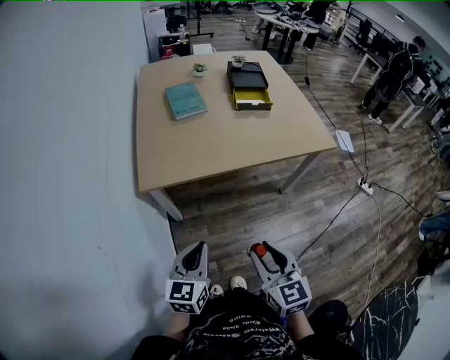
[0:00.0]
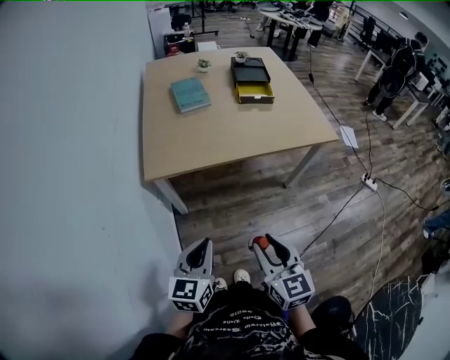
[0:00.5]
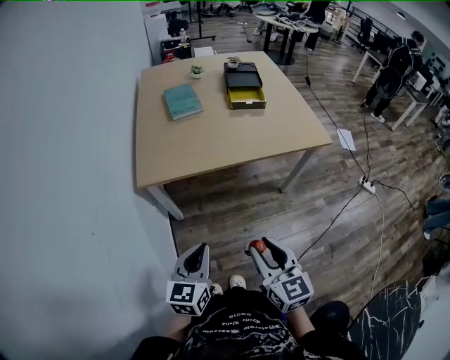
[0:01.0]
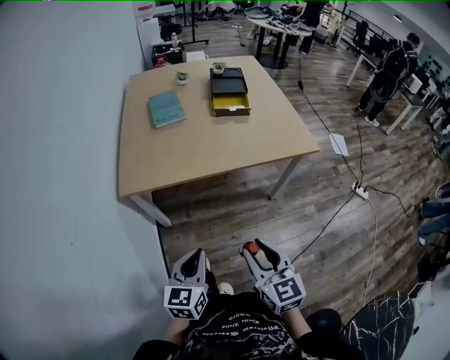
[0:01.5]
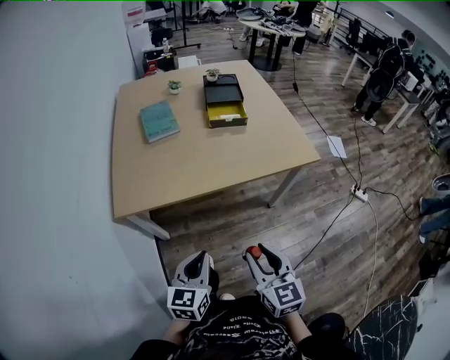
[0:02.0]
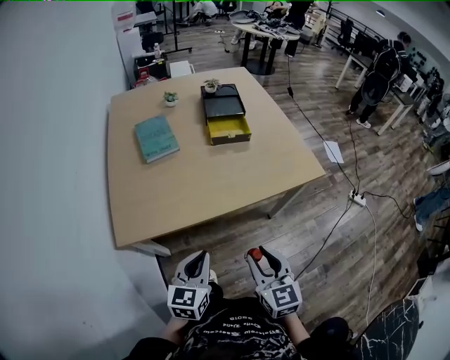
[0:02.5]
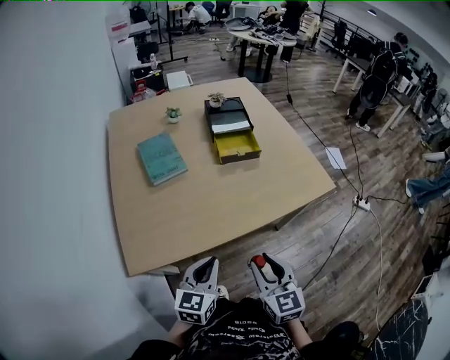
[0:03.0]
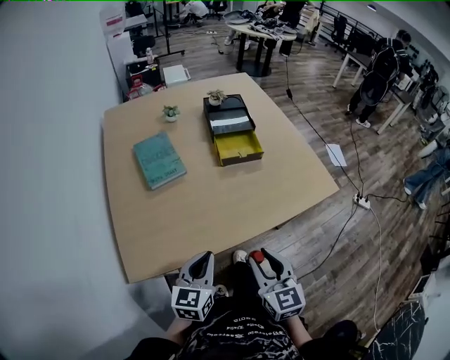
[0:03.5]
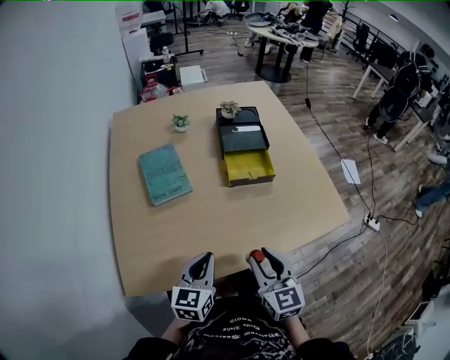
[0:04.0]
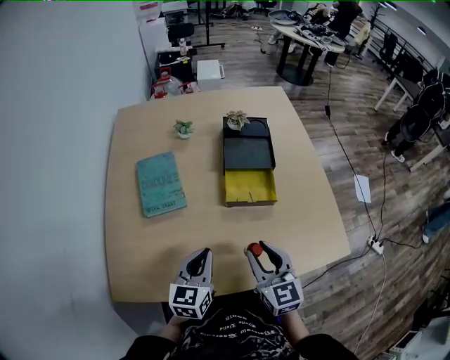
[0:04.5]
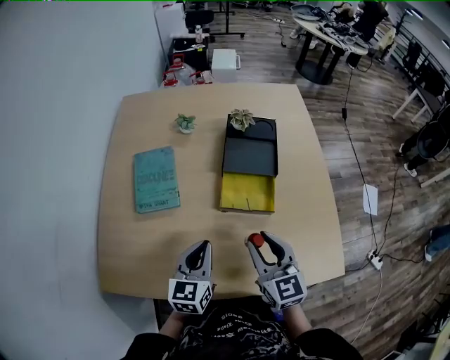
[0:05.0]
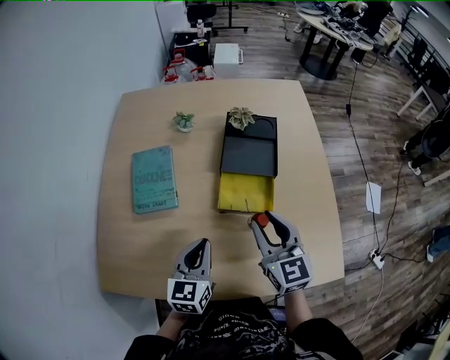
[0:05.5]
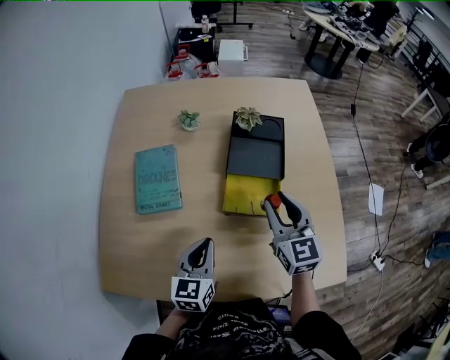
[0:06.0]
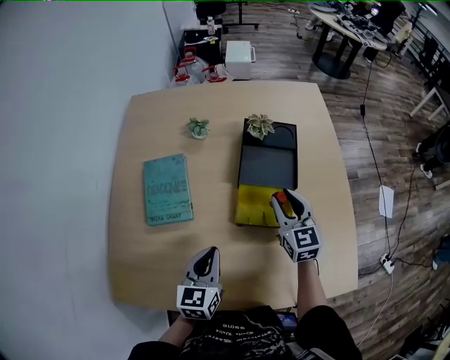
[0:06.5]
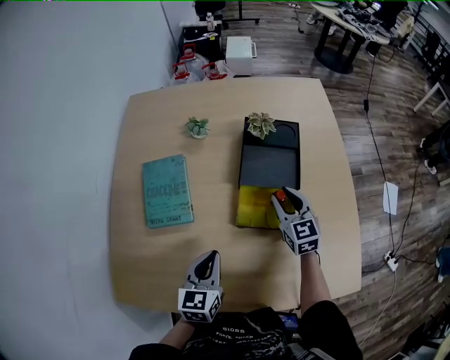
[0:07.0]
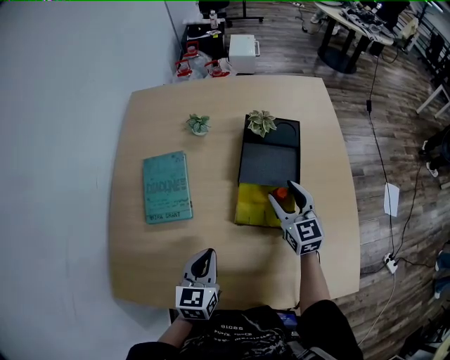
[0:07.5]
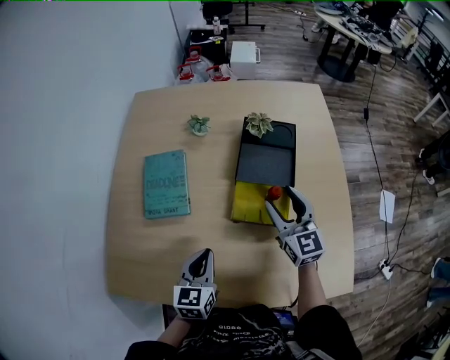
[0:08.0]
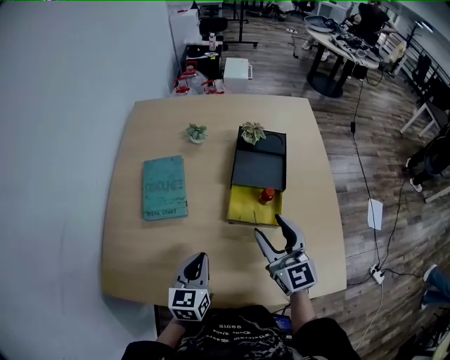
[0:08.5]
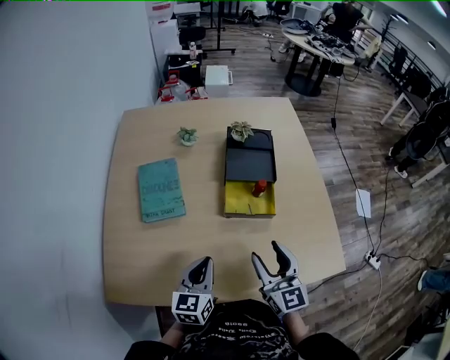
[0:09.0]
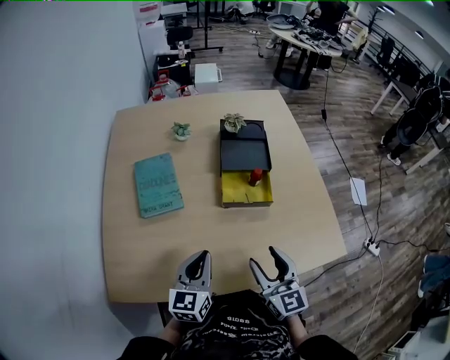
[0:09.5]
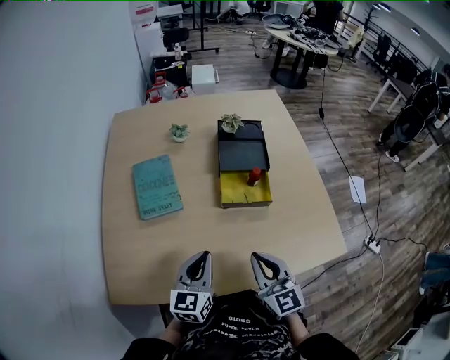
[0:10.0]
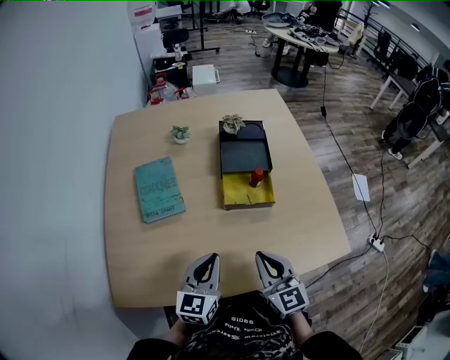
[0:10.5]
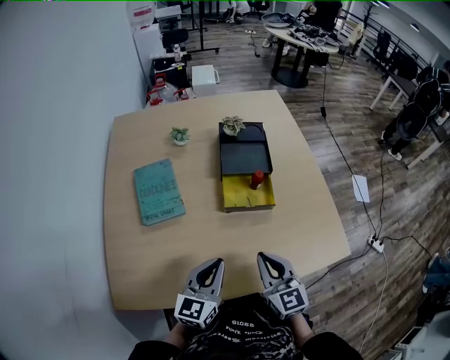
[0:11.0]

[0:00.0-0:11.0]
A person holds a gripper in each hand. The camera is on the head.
0:00.0 to 0:02.0: The two grippers go some 15 cm to the right and forward.
0:02.0 to 0:03.5: Both grippers travel together forward and to the left, some 25 cm.
0:03.5 to 0:05.5: The right gripper moves forward, roughly 40 cm, and turns by approximately 20 degrees. Meanwhile the left gripper shifts some 30 cm forward and to the right, and turns by some 20 degrees.
0:05.5 to 0:07.5: The left gripper ends up approximately 5 cm from where it was, while the right gripper heads forward and downward, covering some 20 cm, and opens.
0:07.5 to 0:09.0: The left gripper travels backward by roughly 10 cm. The right gripper shifts roughly 25 cm backward.
0:09.0 to 0:11.0: The right gripper moves some 5 cm, and closes up.

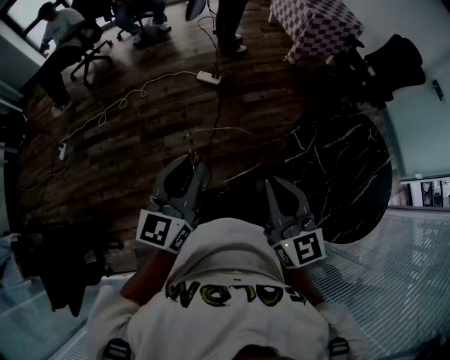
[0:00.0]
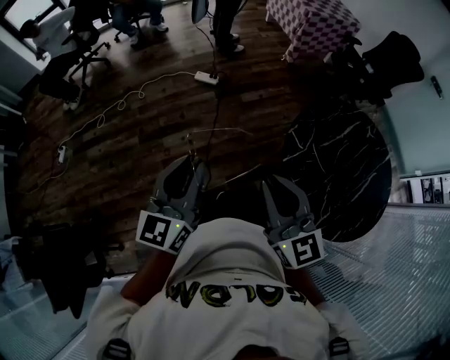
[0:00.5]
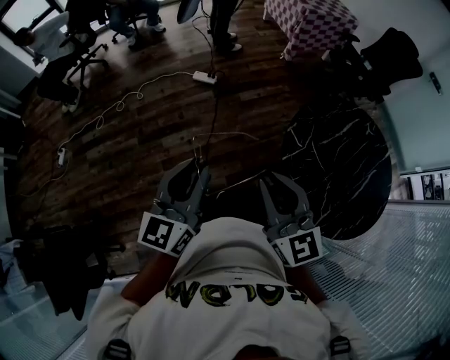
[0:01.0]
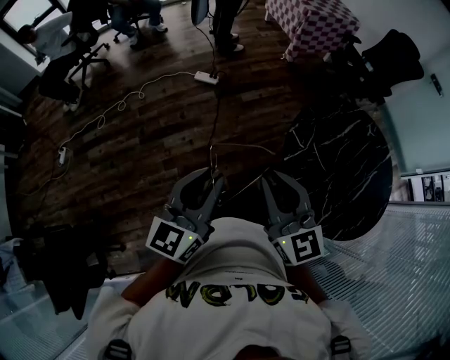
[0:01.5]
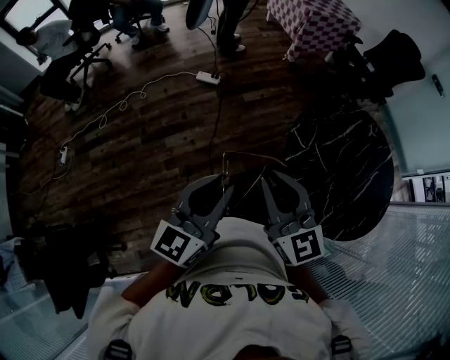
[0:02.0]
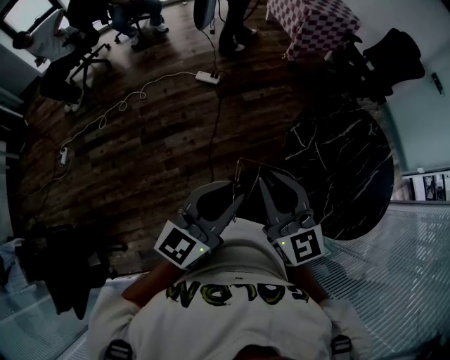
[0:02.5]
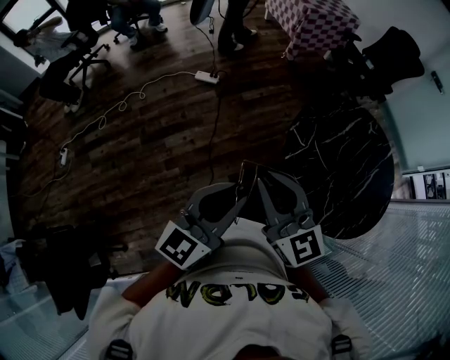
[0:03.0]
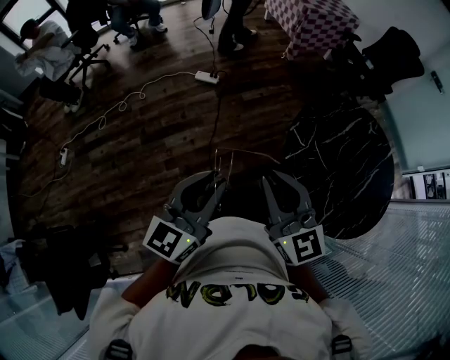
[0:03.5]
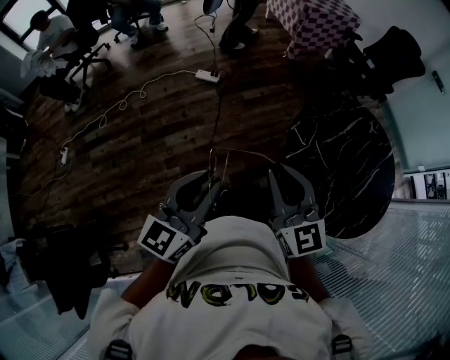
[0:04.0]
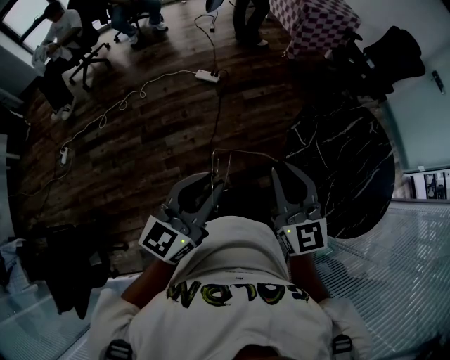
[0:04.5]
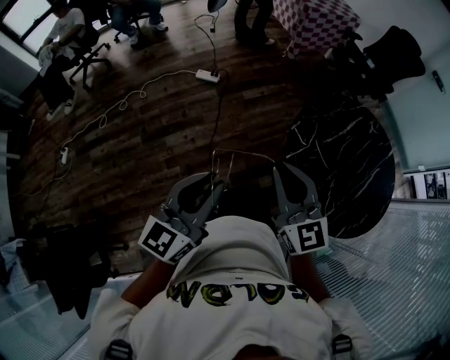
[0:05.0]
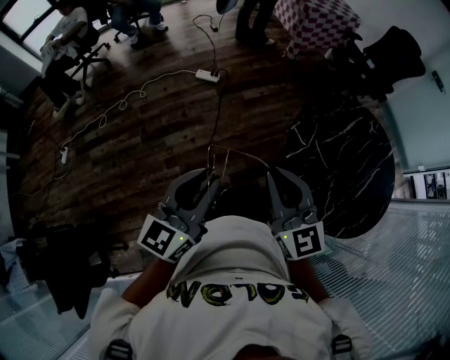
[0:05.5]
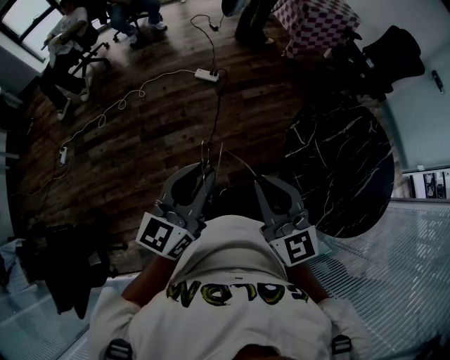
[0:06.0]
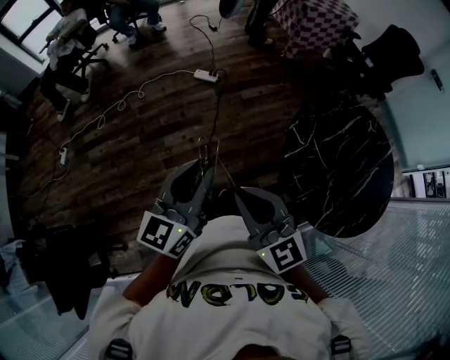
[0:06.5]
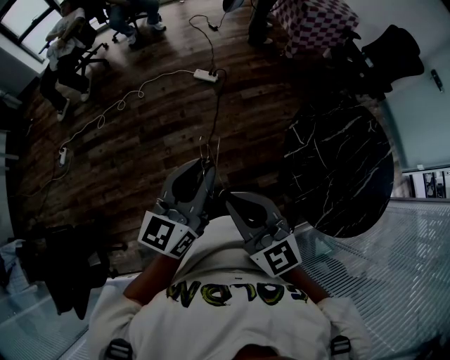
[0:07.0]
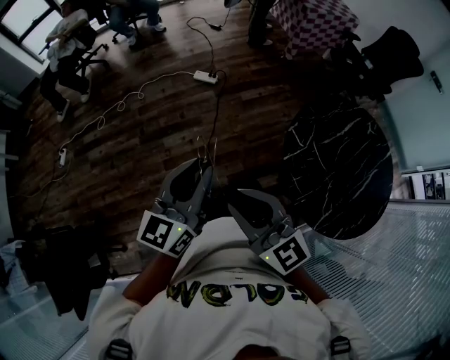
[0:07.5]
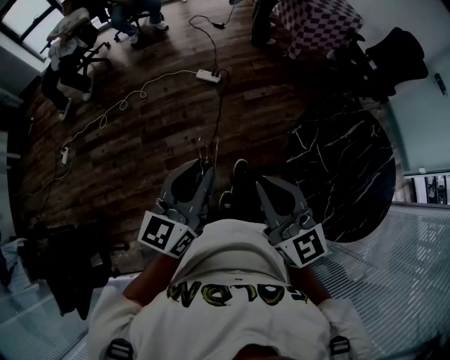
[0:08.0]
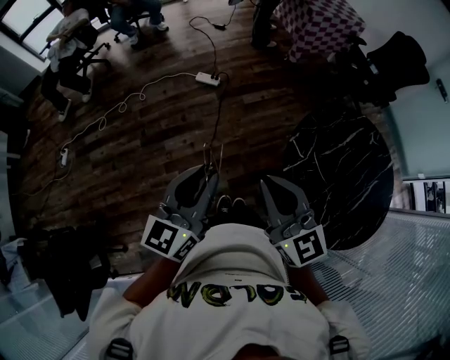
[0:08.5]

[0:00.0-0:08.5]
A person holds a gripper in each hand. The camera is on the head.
0:00.0 to 0:02.0: The left gripper travels to the right by about 5 cm.
0:02.0 to 0:04.0: There are only small adjustments of the grippers.
0:04.0 to 0:06.5: The right gripper moves to the left and backward, about 10 cm.
0:06.5 to 0:08.5: The left gripper moves forward, approximately 5 cm, while the right gripper shifts about 10 cm forward and to the right.

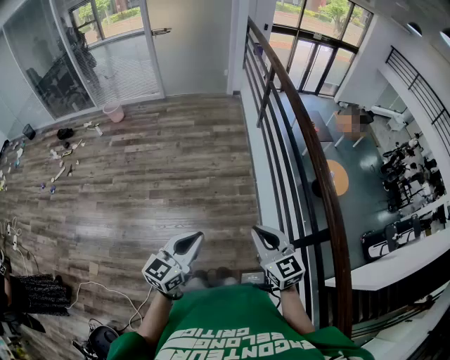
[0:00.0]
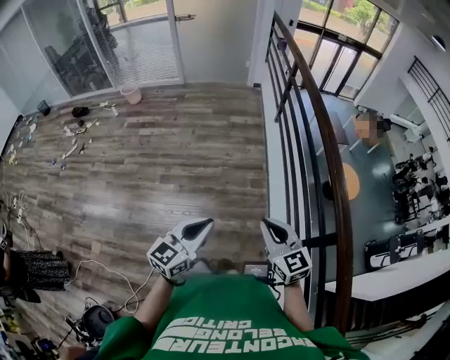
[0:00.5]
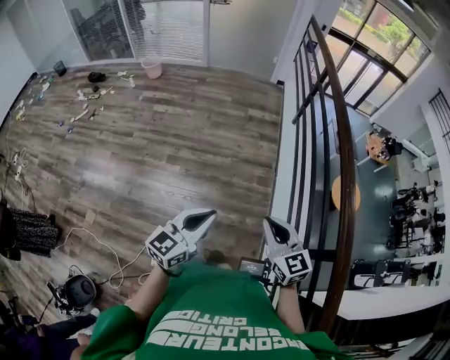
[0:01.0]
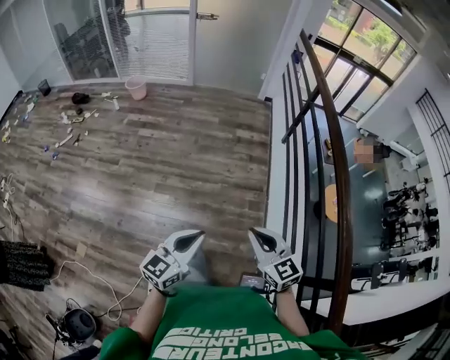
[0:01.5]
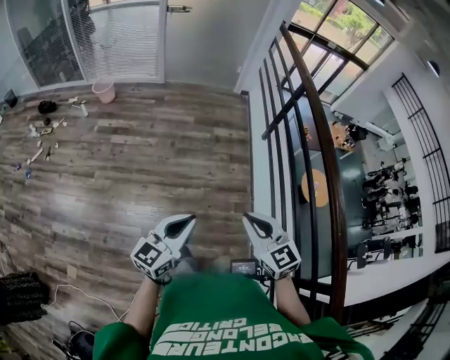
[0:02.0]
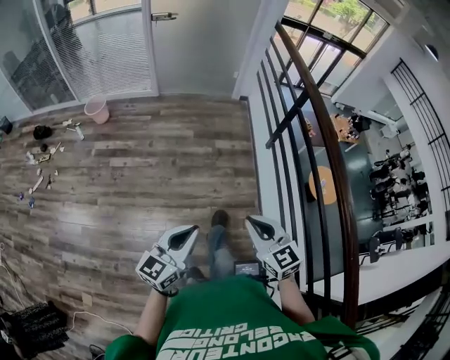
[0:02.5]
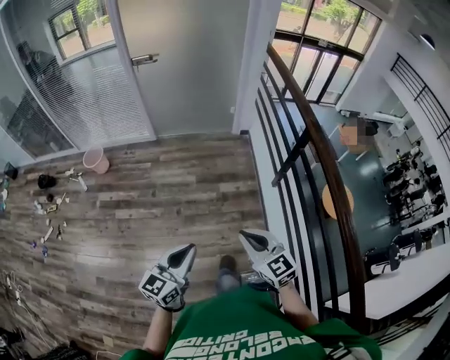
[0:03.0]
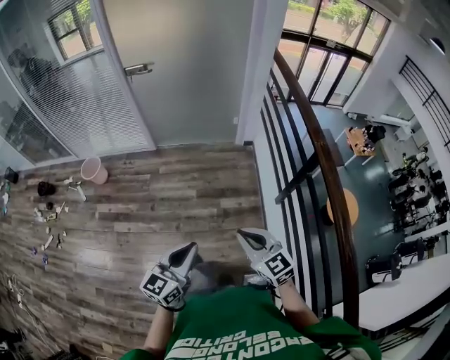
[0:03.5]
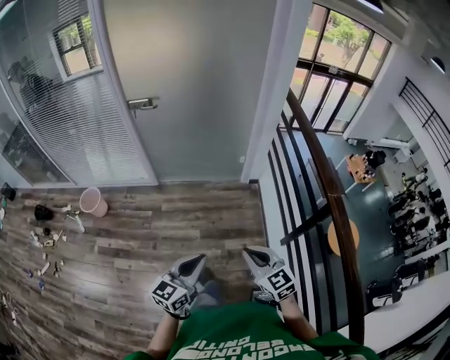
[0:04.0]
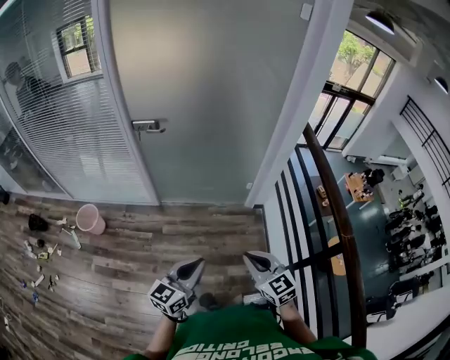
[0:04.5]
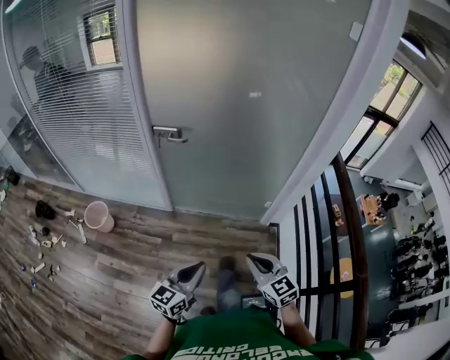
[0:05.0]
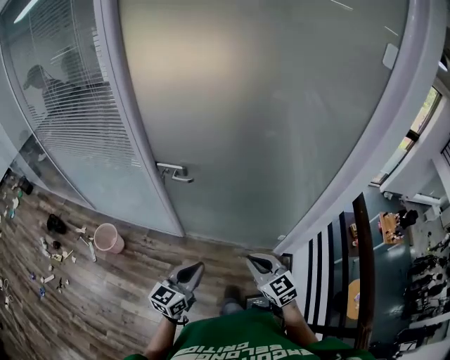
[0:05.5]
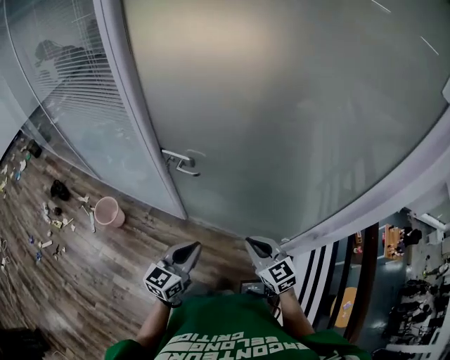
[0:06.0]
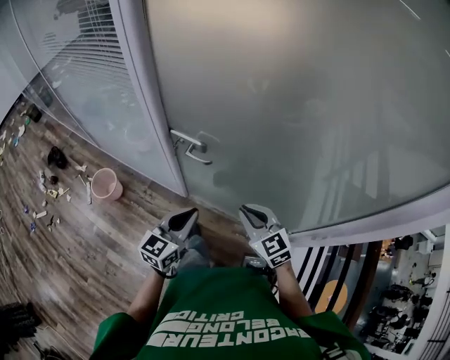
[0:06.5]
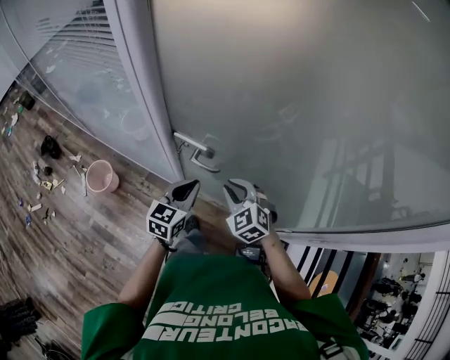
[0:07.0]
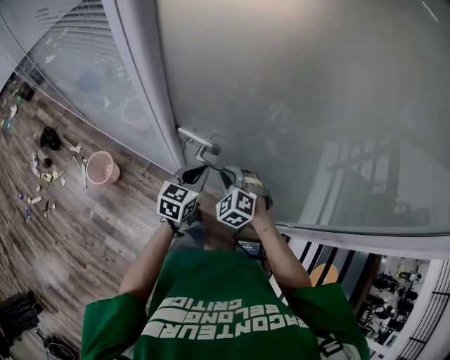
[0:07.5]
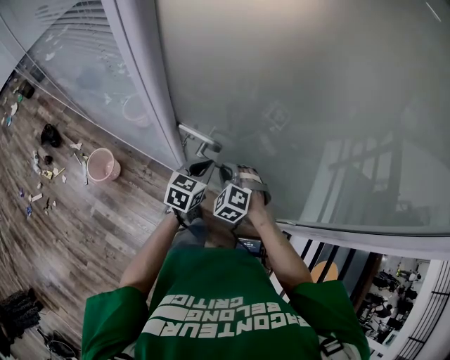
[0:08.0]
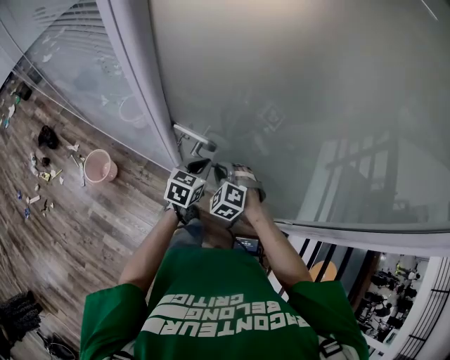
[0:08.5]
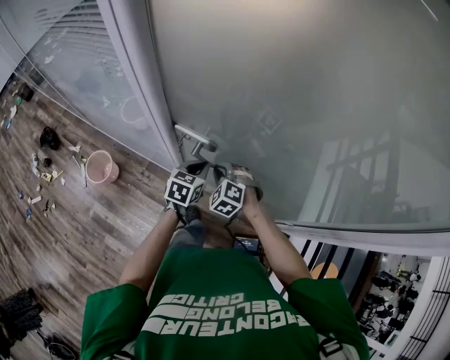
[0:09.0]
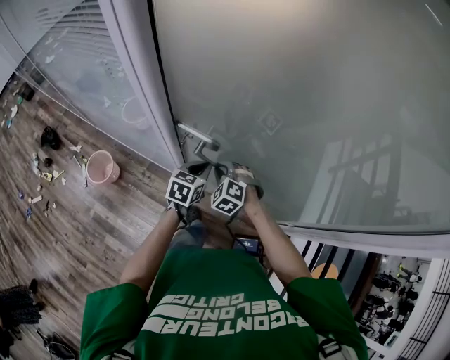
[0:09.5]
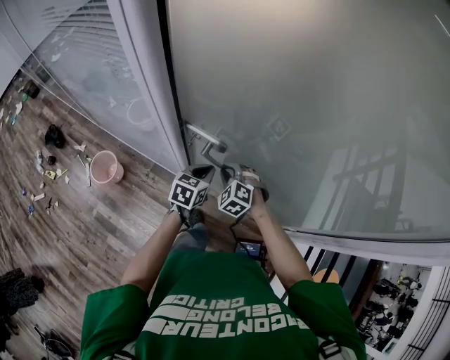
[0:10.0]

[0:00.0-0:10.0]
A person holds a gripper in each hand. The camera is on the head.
0:00.0 to 0:02.0: The two grippers go some 35 cm forward and to the left.
0:02.0 to 0:04.0: The two grippers travel together, forward, approximately 70 cm.
0:04.0 to 0:06.0: Both grippers are carried forward, some 60 cm. The right gripper changes its angle by some 20 degrees. Meanwhile the left gripper rotates roughly 20 degrees.
0:06.0 to 0:08.0: The right gripper moves forward, to the left and downward, approximately 35 cm, and rolls counterclockwise, seen from behind, by roughly 40 degrees. Meanwhile the left gripper is displaced forward by some 30 cm, and rotates approximately 20 degrees.
0:08.0 to 0:10.0: The grippers move only a little.
